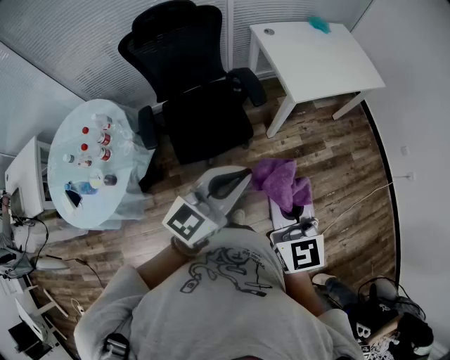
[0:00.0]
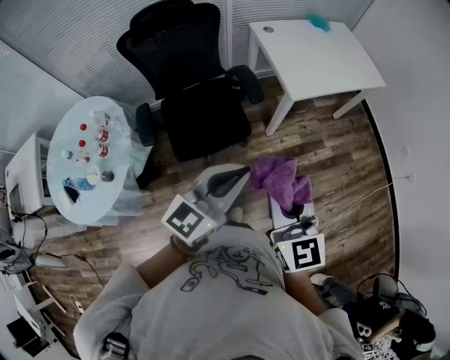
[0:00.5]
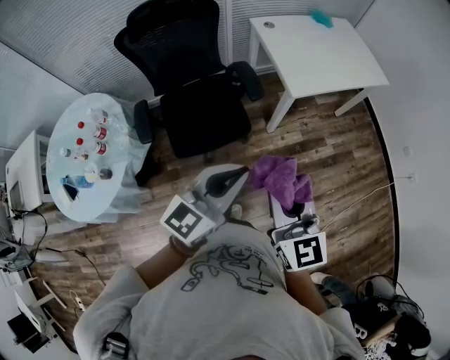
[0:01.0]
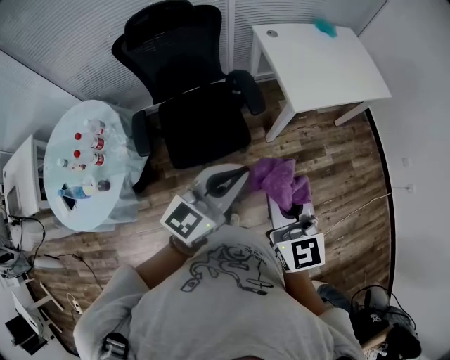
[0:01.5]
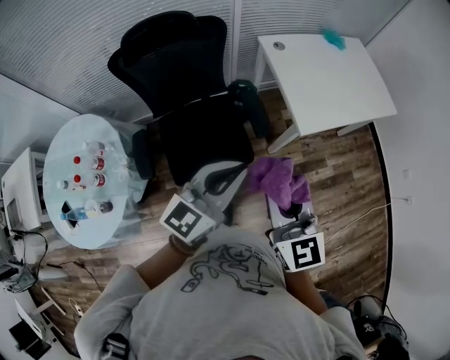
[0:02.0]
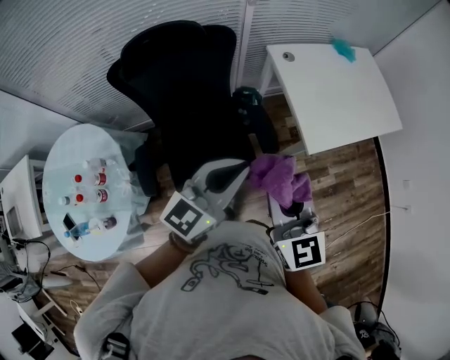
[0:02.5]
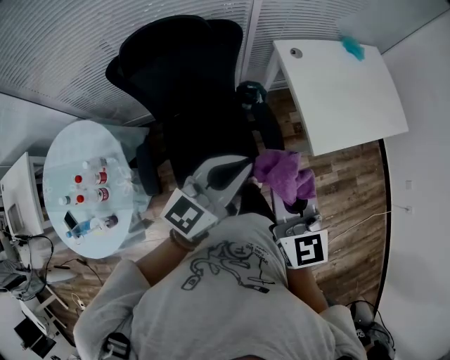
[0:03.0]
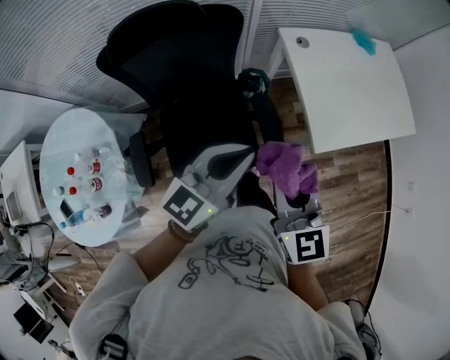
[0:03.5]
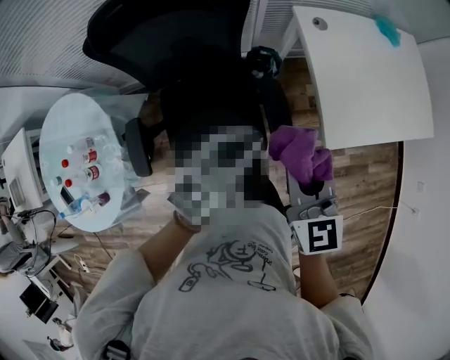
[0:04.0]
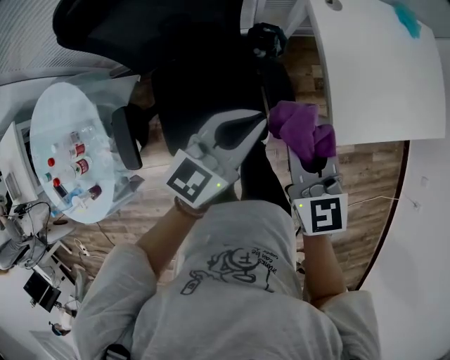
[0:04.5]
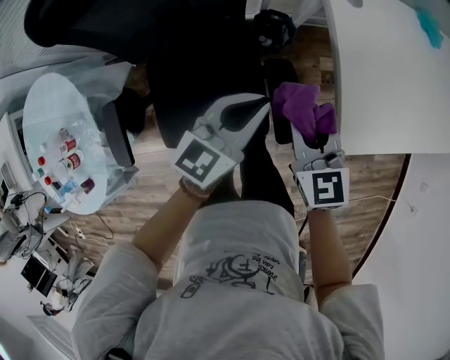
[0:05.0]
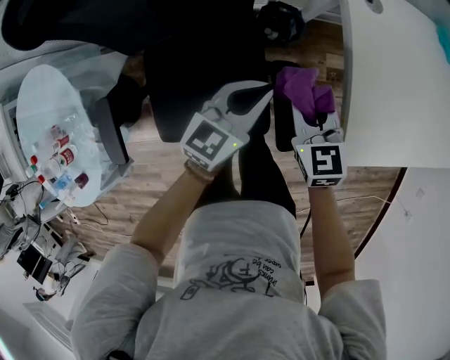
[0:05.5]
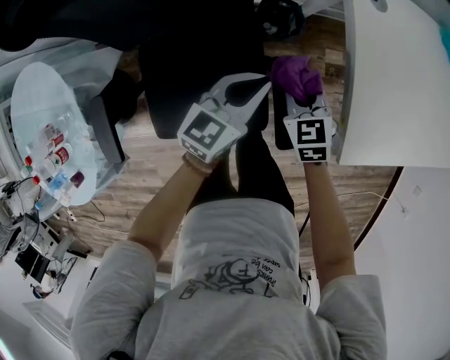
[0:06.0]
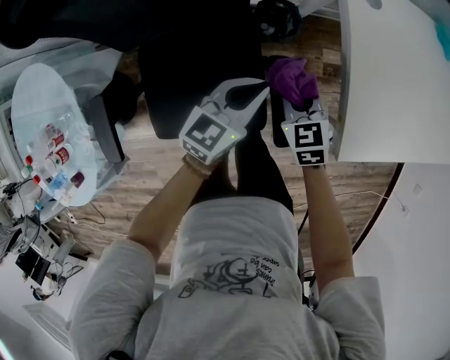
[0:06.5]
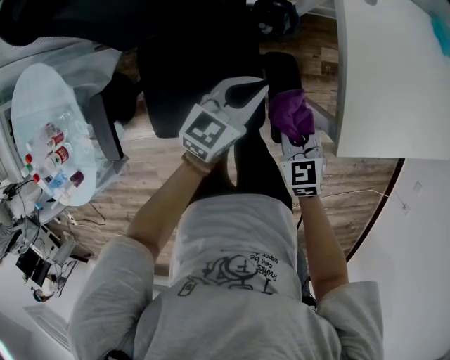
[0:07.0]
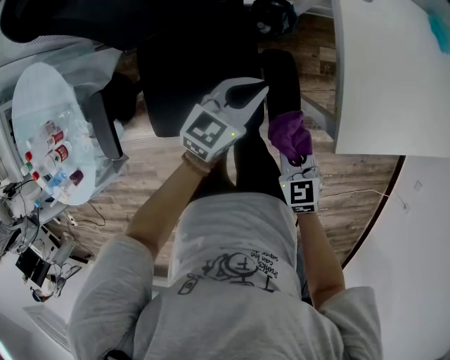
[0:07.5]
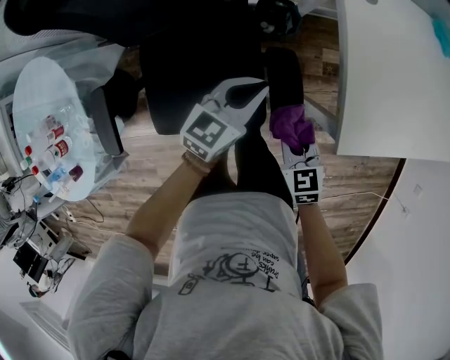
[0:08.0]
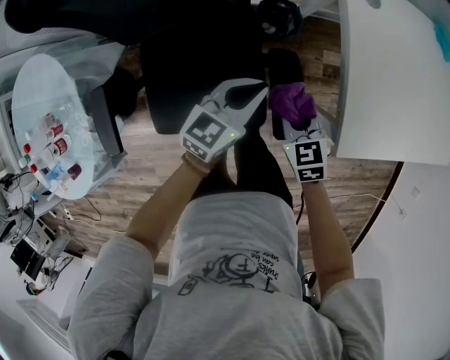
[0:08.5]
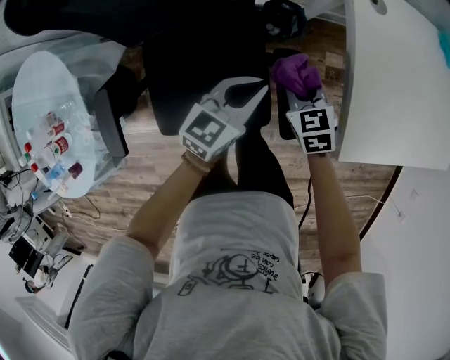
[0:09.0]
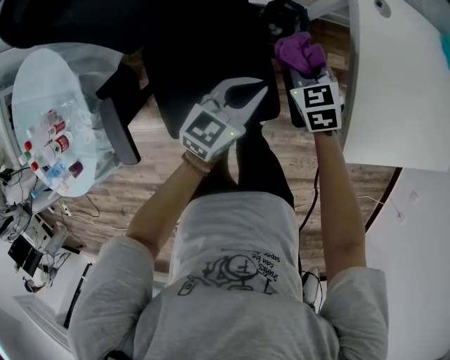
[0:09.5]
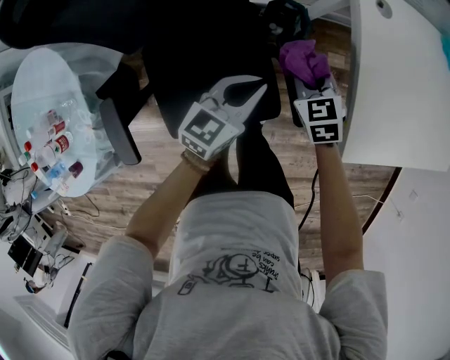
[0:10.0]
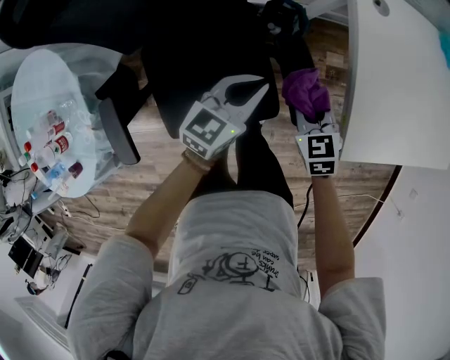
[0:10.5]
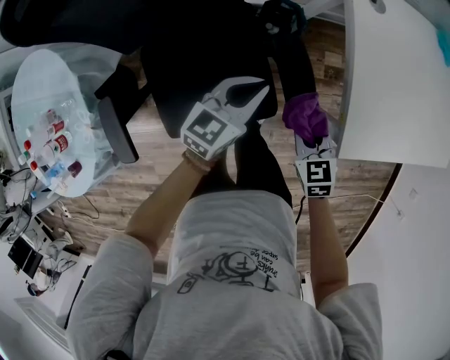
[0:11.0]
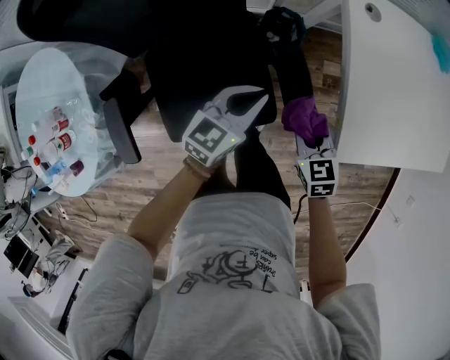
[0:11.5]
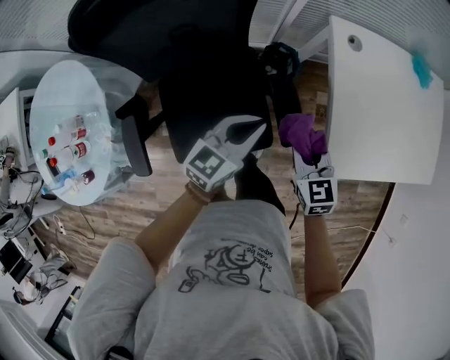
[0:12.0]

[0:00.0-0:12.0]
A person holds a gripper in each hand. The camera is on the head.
0:00.0 to 0:02.0: The two grippers go approximately 20 cm forward.
0:02.0 to 0:04.0: Both grippers move forward and downward, approximately 25 cm.
0:04.0 to 0:06.0: The grippers both shift downward and forward by approximately 35 cm. The right gripper rotates roughly 30 degrees.
0:06.0 to 0:08.0: The right gripper travels backward by approximately 15 cm.
0:08.0 to 0:10.0: The right gripper travels forward by about 15 cm.
0:10.0 to 0:12.0: The right gripper heads upward and backward, covering about 20 cm. Meanwhile the left gripper shifts some 10 cm upward.

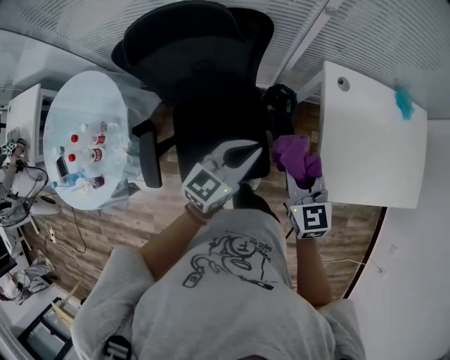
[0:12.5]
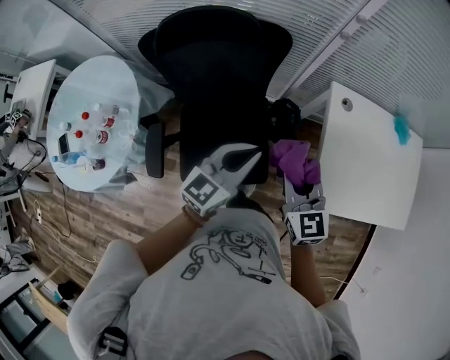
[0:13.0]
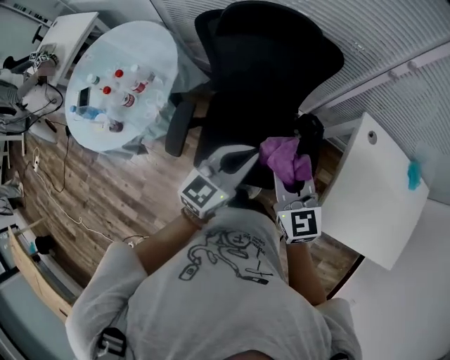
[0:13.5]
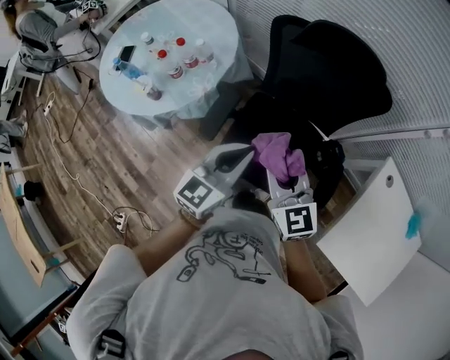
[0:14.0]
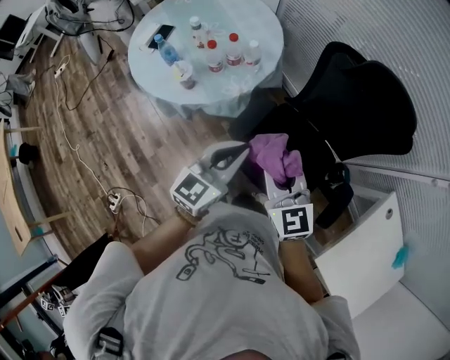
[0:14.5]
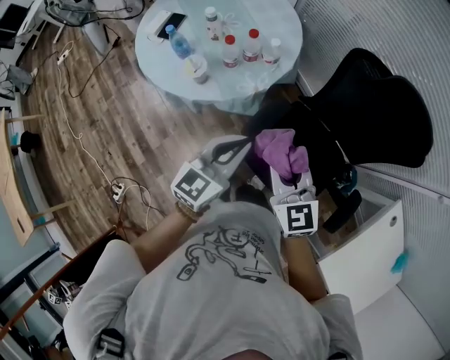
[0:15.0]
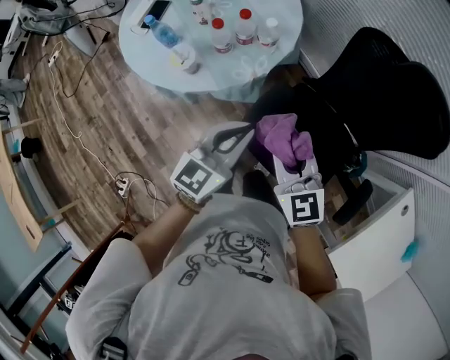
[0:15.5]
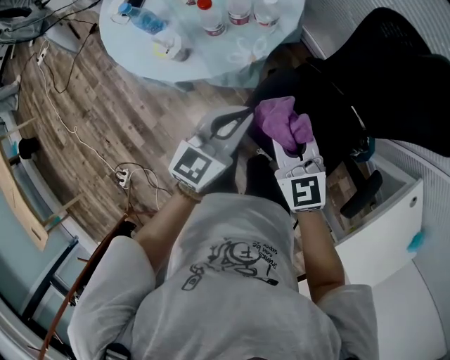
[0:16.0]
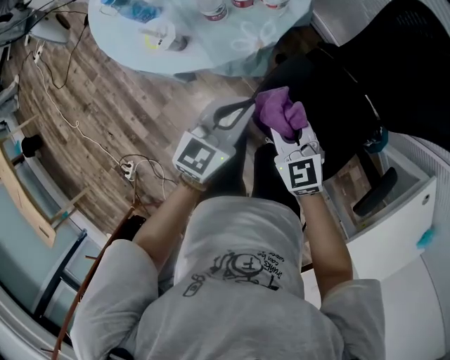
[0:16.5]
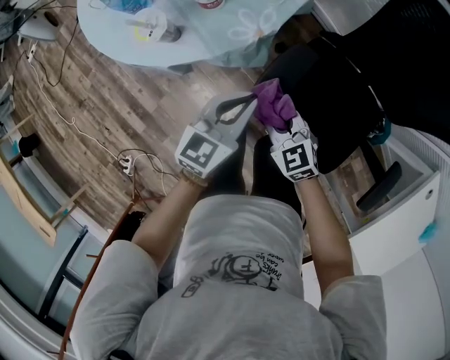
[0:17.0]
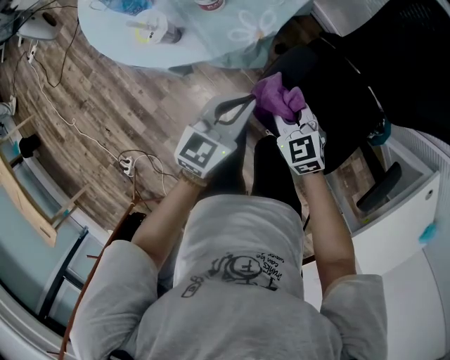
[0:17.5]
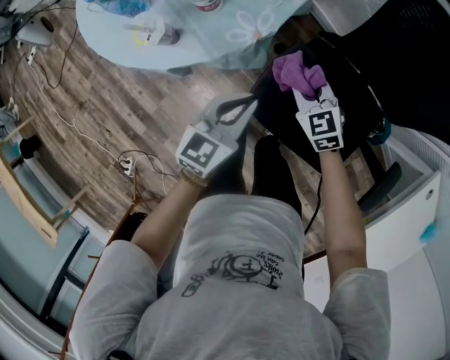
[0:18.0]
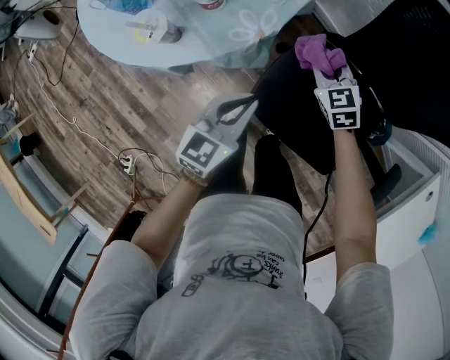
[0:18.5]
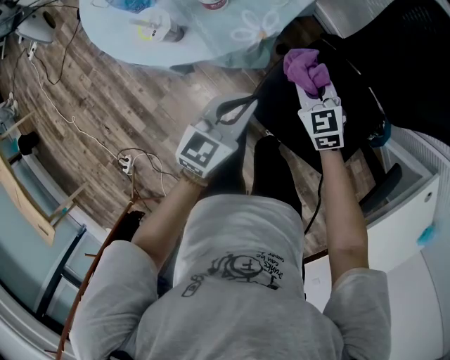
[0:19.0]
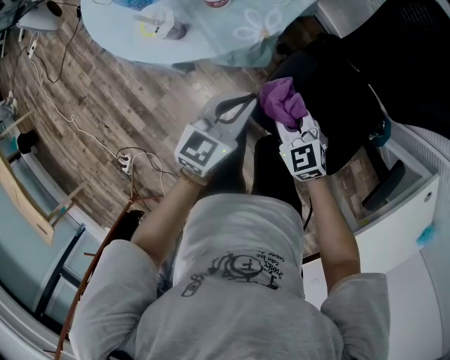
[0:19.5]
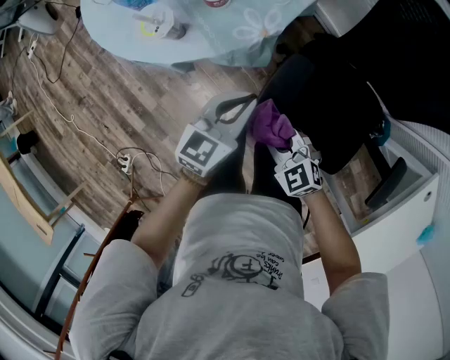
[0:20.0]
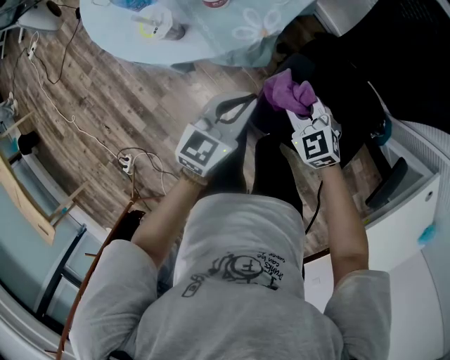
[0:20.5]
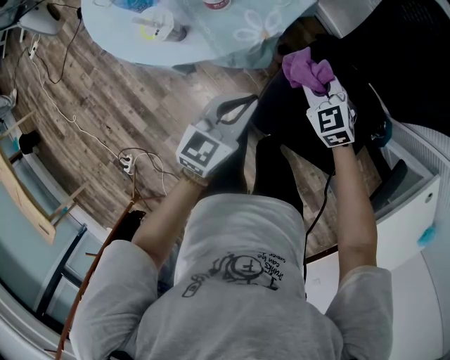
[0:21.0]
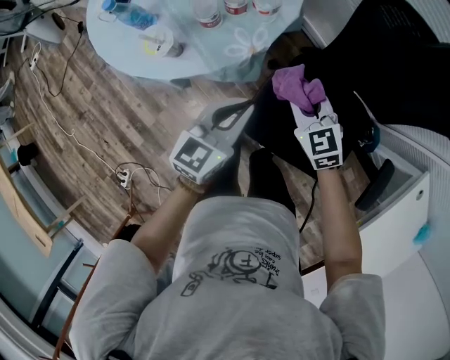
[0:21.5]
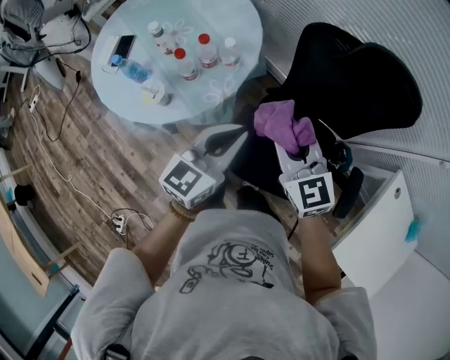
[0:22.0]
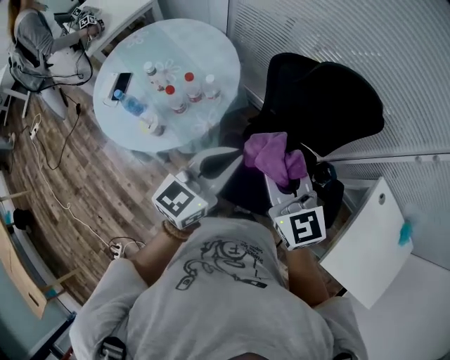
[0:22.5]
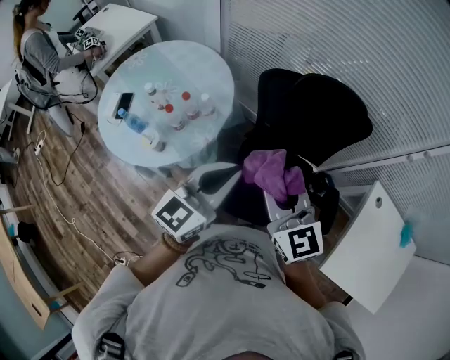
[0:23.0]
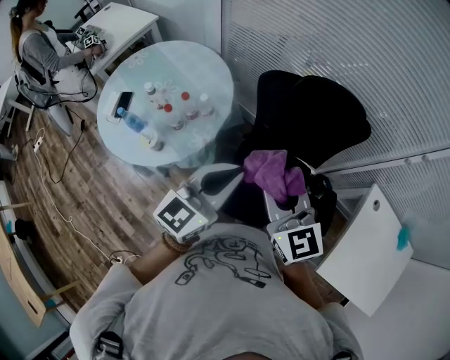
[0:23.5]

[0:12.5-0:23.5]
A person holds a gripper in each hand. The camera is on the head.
0:12.5 to 0:14.5: Both grippers are carried approximately 50 cm. The left gripper swivels some 50 degrees. Meanwhile the right gripper swivels about 50 degrees.
0:14.5 to 0:16.0: Both grippers move downward and forward, about 20 cm.
0:16.0 to 0:18.0: The left gripper travels downward by about 10 cm. Meanwhile the right gripper shifts approximately 20 cm downward and forward.
0:18.0 to 0:20.0: The right gripper moves backward and to the left, about 20 cm.
0:20.0 to 0:21.5: The right gripper shifts approximately 20 cm forward, to the right and upward, while the left gripper moves upward, approximately 5 cm.
0:21.5 to 0:23.5: The left gripper goes approximately 35 cm upward and to the right, and swivels about 20 degrees, while the right gripper heads upward, covering roughly 40 cm, and swivels about 30 degrees.

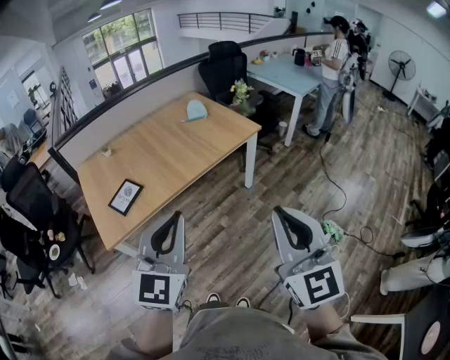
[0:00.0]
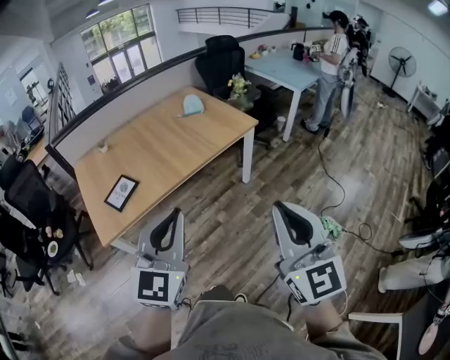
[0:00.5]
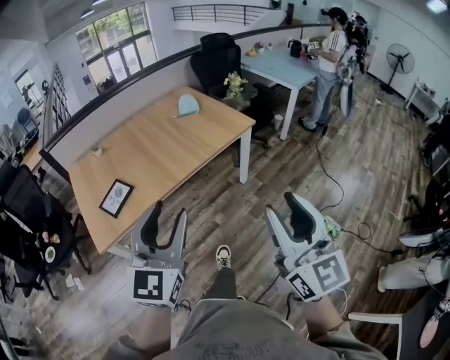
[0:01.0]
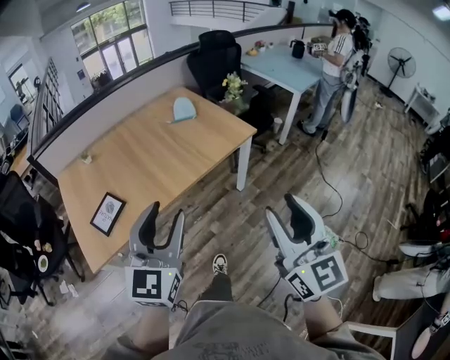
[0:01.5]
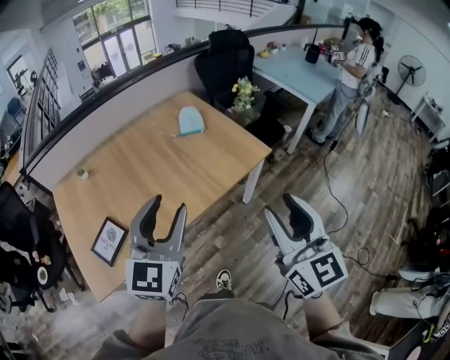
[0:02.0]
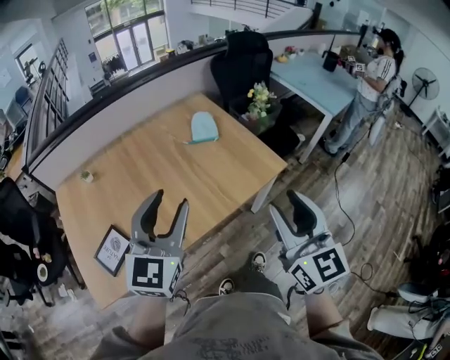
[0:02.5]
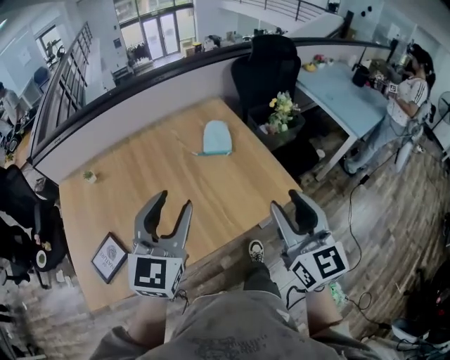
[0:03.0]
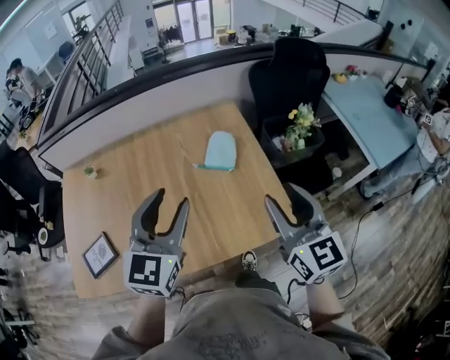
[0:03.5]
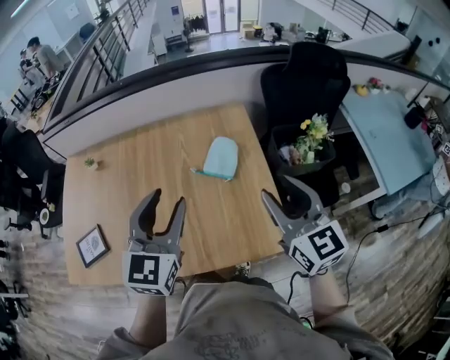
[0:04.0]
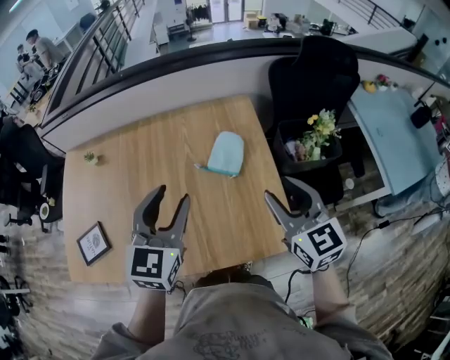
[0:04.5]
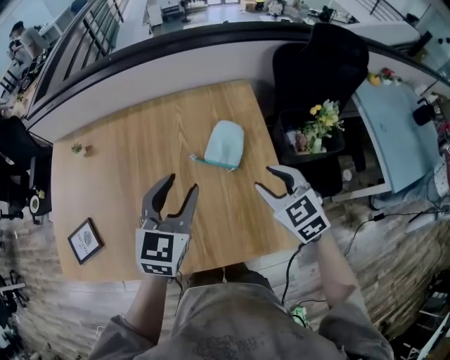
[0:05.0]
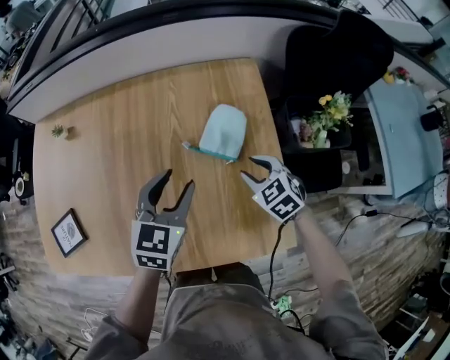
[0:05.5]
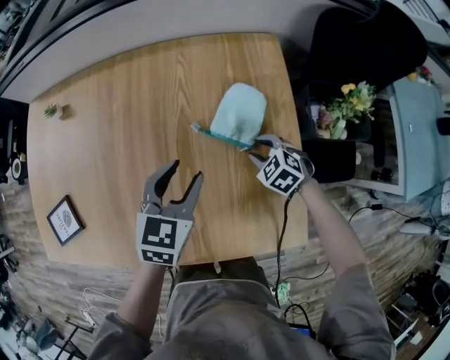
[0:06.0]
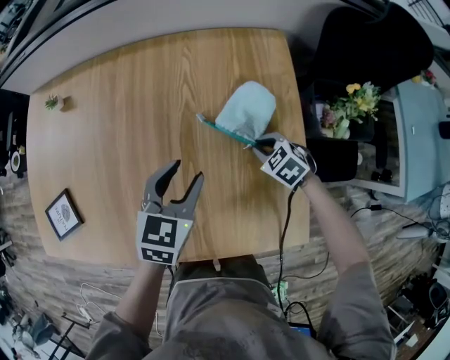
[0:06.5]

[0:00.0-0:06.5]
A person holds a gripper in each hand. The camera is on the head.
0:00.0 to 0:02.0: The two grippers go some 35 cm forward. The left gripper opens its fingers; the right gripper opens.
0:02.0 to 0:04.5: Both grippers are carried about 50 cm. The left gripper swivels approximately 30 degrees, while the right gripper rotates approximately 40 degrees.
0:04.5 to 0:06.5: The right gripper goes about 40 cm downward and forward, tips its fingers downward by about 50 degrees, and closes up; the left gripper travels downward by about 25 cm, and rotates approximately 20 degrees.
